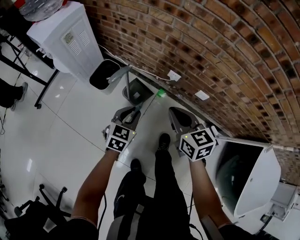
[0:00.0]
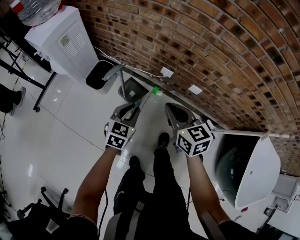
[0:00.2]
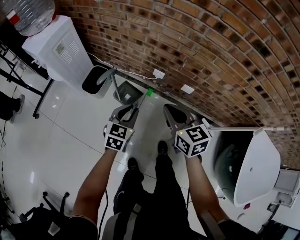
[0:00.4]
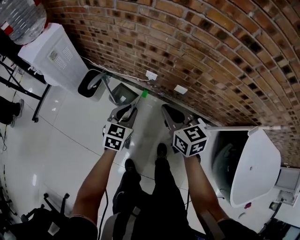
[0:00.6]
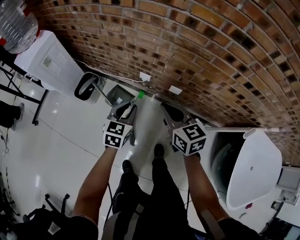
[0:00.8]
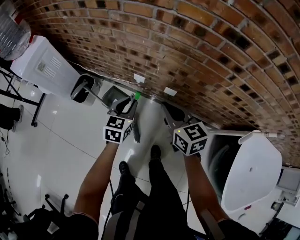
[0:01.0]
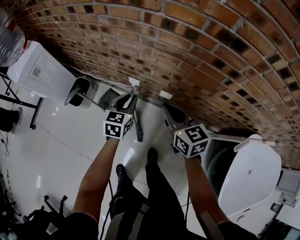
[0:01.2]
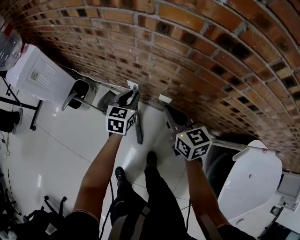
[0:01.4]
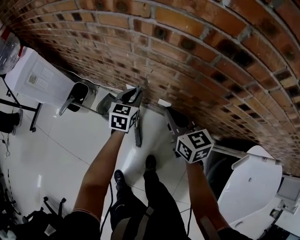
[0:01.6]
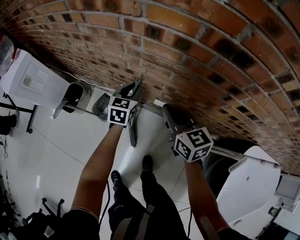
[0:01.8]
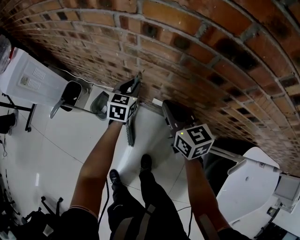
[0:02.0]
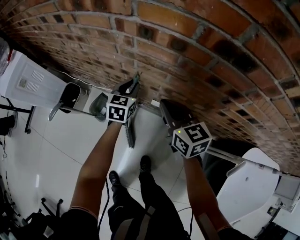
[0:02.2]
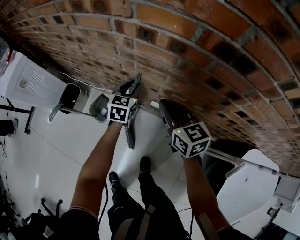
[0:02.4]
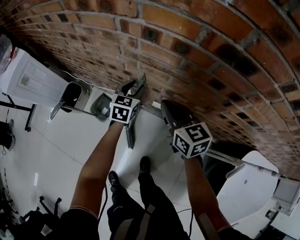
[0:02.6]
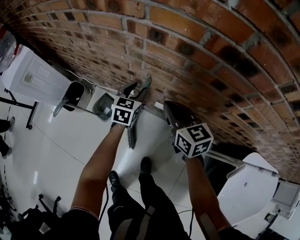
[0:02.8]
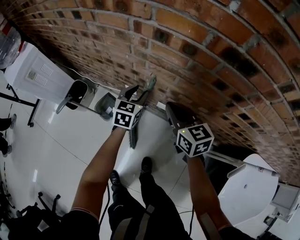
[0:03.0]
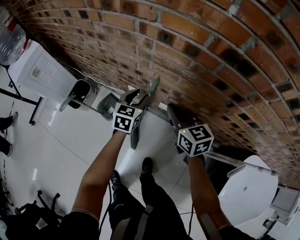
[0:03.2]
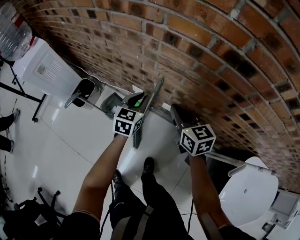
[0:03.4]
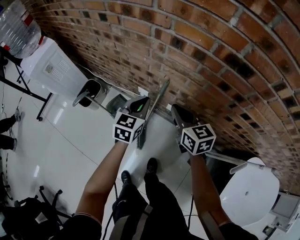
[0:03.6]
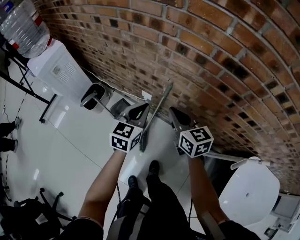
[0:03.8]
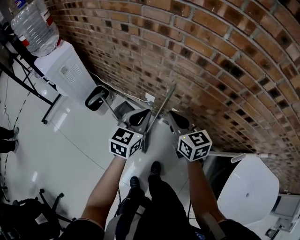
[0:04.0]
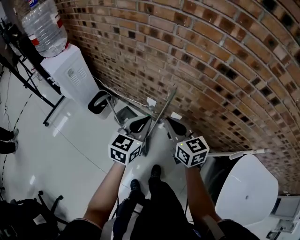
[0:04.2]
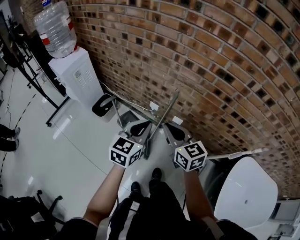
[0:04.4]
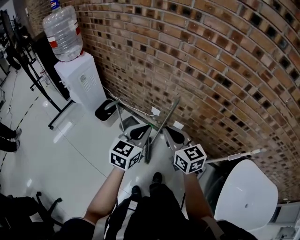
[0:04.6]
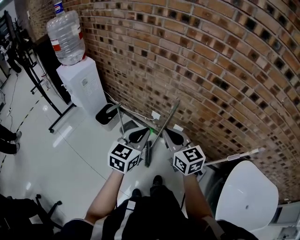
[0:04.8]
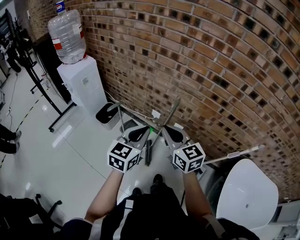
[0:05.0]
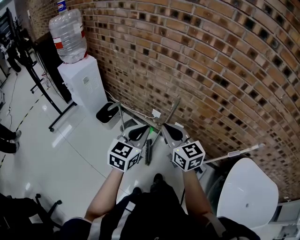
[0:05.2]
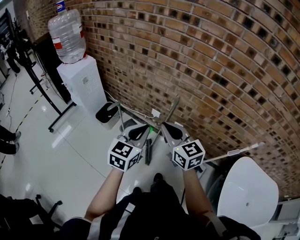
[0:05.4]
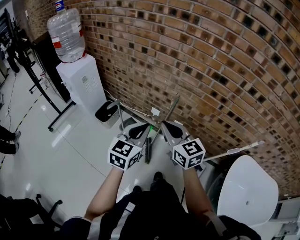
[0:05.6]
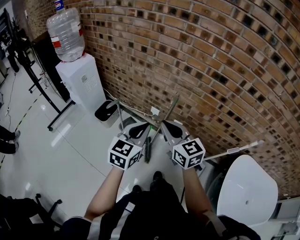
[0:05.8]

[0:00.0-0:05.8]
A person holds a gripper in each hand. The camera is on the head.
0:00.0 to 0:01.4: The right gripper shifts roughly 25 cm to the right, while the left gripper goes roughly 30 cm to the right and forward.
0:01.4 to 0:02.8: The right gripper moves forward, roughly 5 cm. The left gripper moves forward and to the right, roughly 10 cm.
0:02.8 to 0:04.4: The grippers both shift backward, upward and to the left by about 35 cm. The left gripper closes its fingers.
0:04.4 to 0:05.8: The right gripper goes some 5 cm upward; the left gripper is displaced backward by approximately 5 cm.

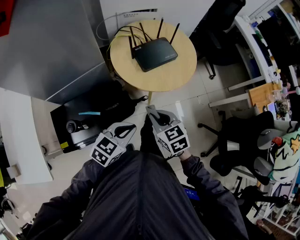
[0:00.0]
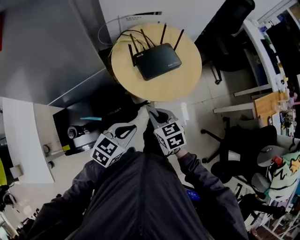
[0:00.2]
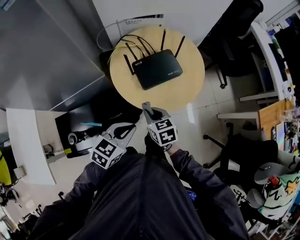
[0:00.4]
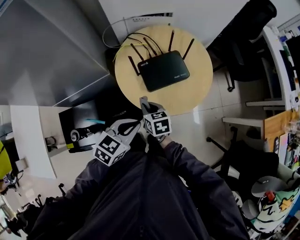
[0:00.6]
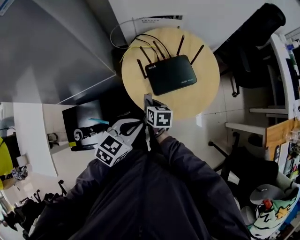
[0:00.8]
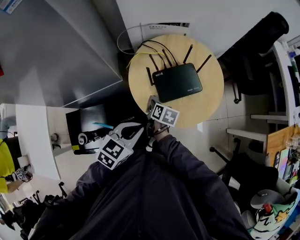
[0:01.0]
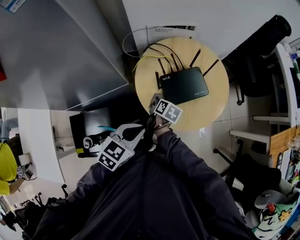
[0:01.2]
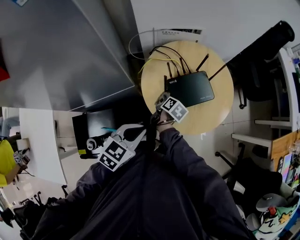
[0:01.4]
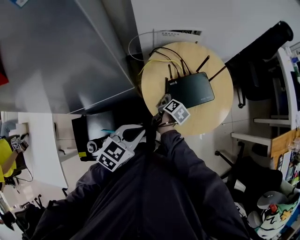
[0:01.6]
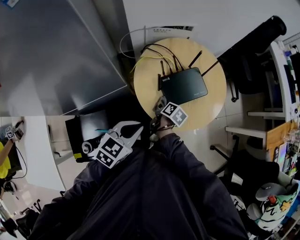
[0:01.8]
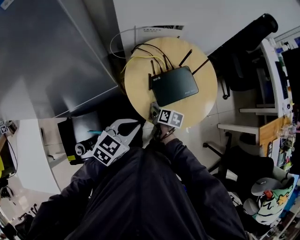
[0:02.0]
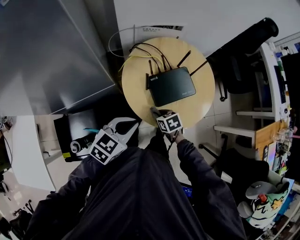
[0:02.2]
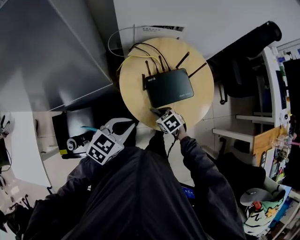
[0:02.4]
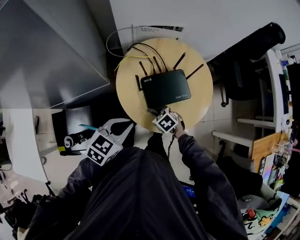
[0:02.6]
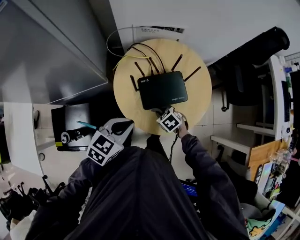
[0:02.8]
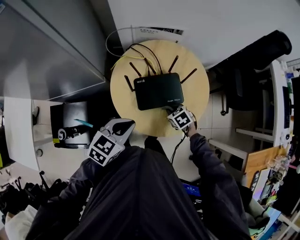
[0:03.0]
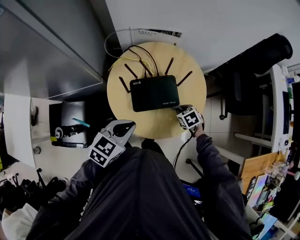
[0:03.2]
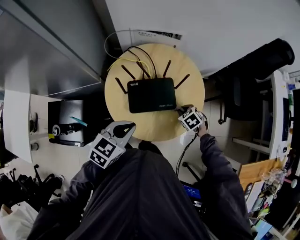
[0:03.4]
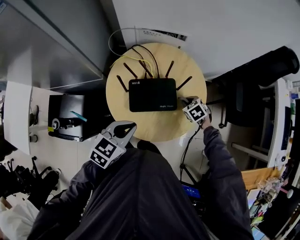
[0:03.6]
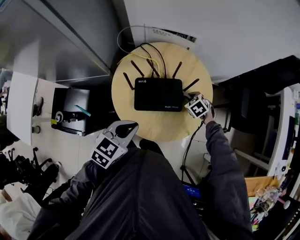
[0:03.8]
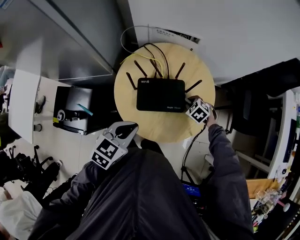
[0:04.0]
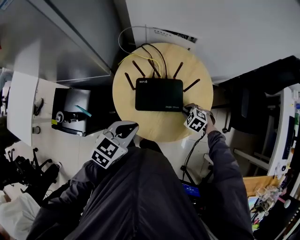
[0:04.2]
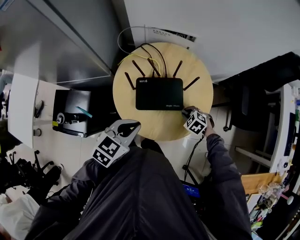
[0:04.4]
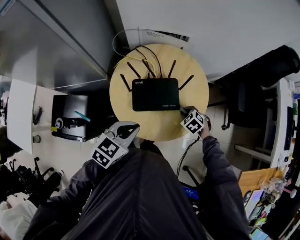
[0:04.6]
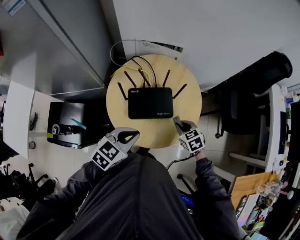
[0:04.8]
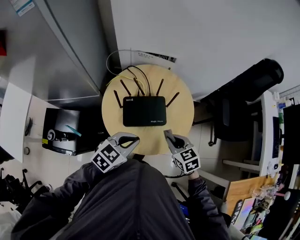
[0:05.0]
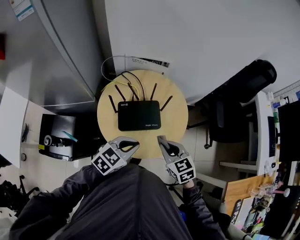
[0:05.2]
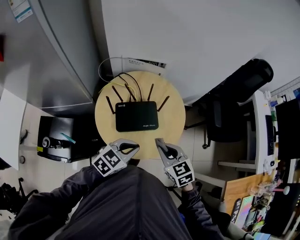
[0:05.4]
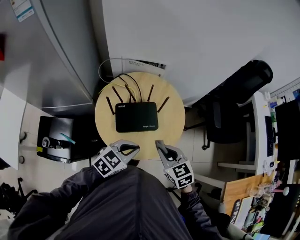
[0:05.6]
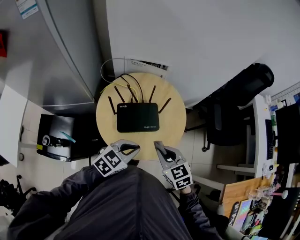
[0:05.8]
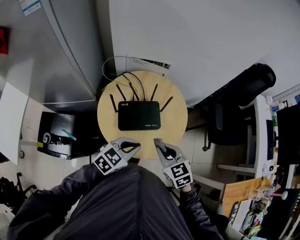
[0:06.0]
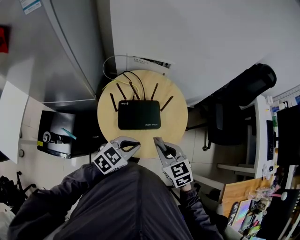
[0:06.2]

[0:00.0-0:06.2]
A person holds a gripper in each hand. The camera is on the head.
0:00.0 to 0:01.6: The left gripper heads forward and to the left, covering about 20 cm, while the right gripper goes about 35 cm forward and downward, and rotates around the line of its fingers by about 70 degrees, clockwise from behind.
0:01.6 to 0:03.2: The right gripper moves roughly 25 cm, and rolls counterclockwise, seen from behind, by roughly 90 degrees. Meanwhile the left gripper shifts by some 15 cm.
0:03.2 to 0:04.6: The right gripper moves about 10 cm forward and comes back, and rotates some 30 degrees.
0:04.6 to 0:06.2: The left gripper travels to the right by roughly 5 cm; the right gripper moves upward and backward, roughly 25 cm, and tips its fingers upward by approximately 30 degrees.

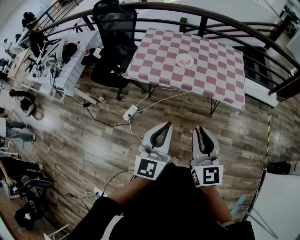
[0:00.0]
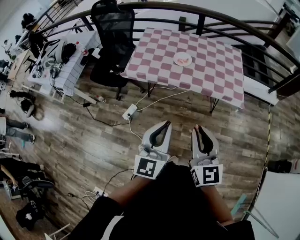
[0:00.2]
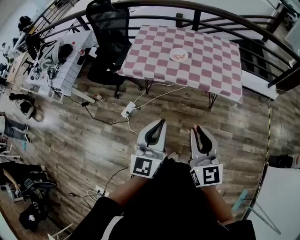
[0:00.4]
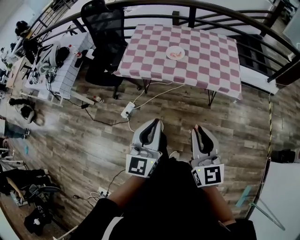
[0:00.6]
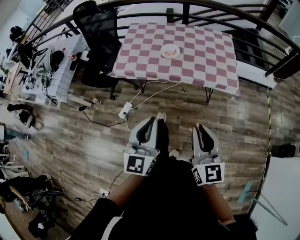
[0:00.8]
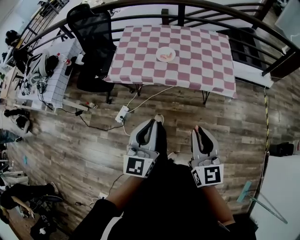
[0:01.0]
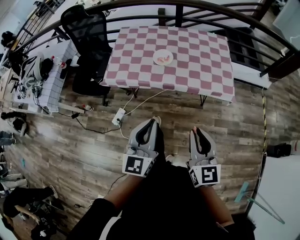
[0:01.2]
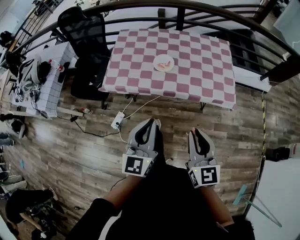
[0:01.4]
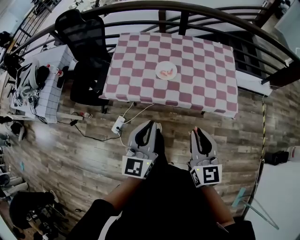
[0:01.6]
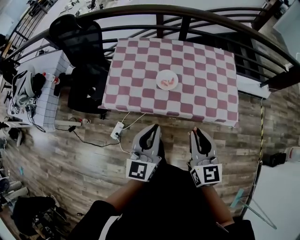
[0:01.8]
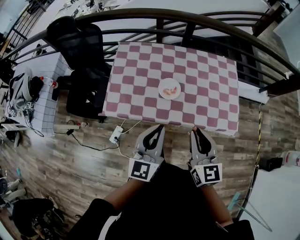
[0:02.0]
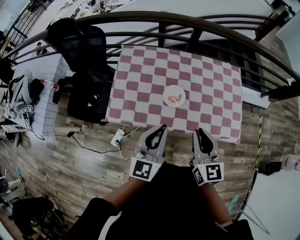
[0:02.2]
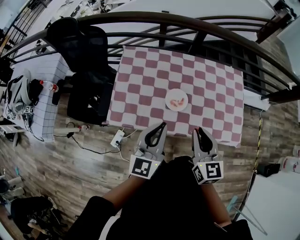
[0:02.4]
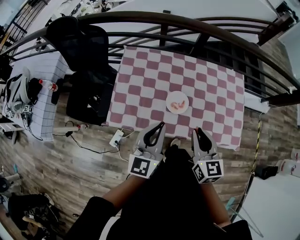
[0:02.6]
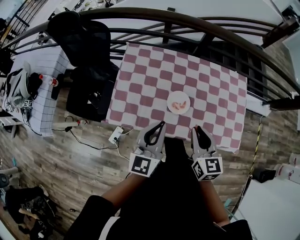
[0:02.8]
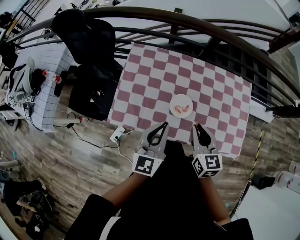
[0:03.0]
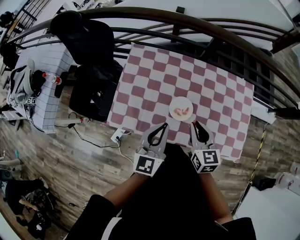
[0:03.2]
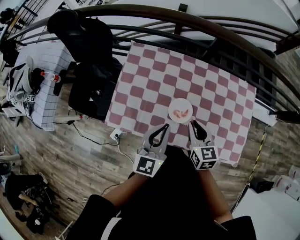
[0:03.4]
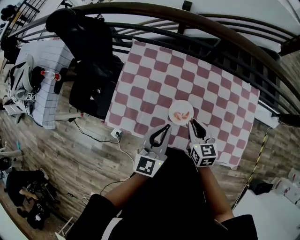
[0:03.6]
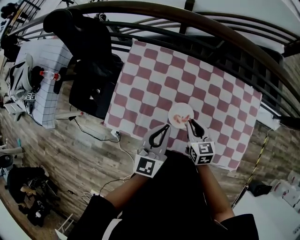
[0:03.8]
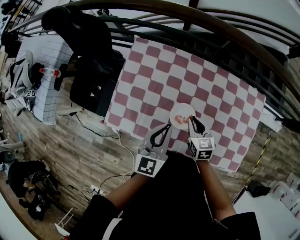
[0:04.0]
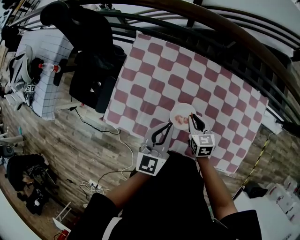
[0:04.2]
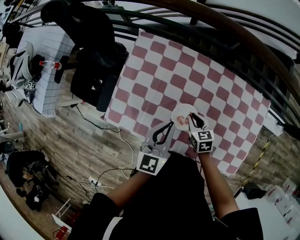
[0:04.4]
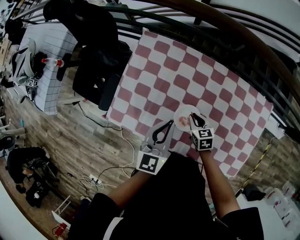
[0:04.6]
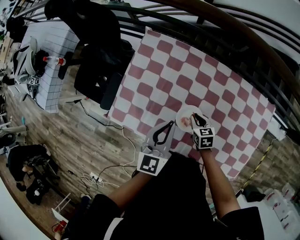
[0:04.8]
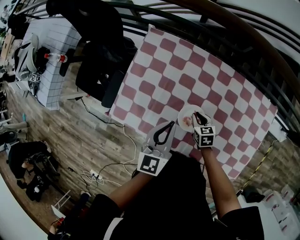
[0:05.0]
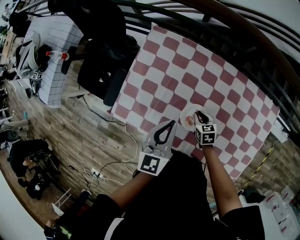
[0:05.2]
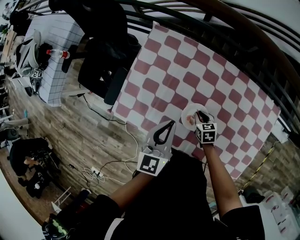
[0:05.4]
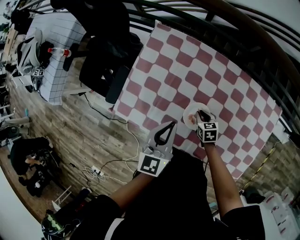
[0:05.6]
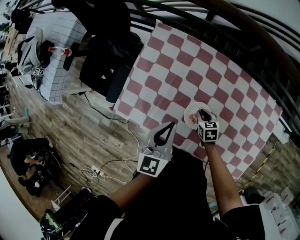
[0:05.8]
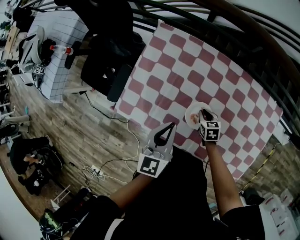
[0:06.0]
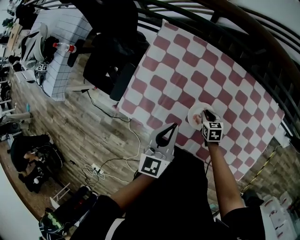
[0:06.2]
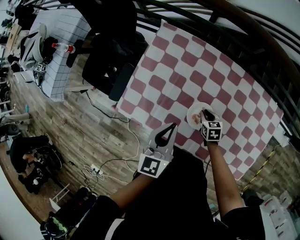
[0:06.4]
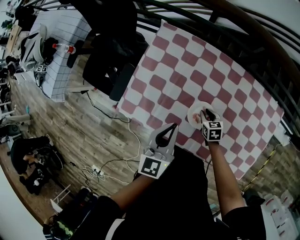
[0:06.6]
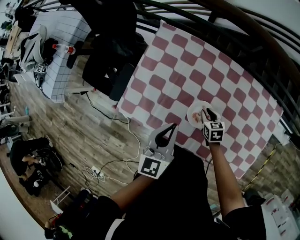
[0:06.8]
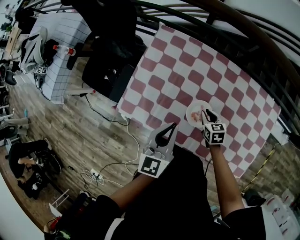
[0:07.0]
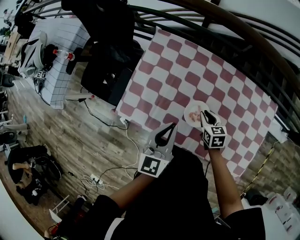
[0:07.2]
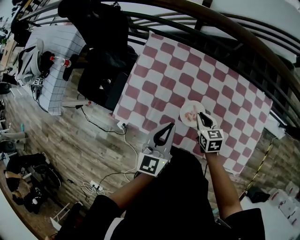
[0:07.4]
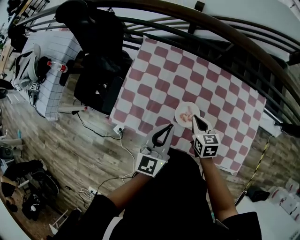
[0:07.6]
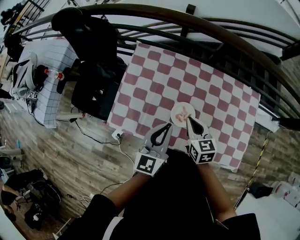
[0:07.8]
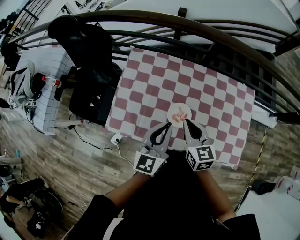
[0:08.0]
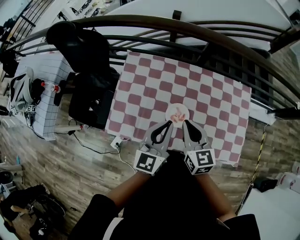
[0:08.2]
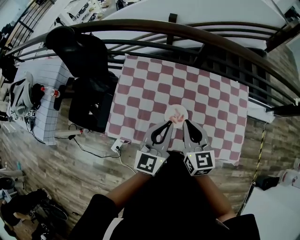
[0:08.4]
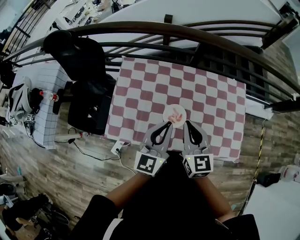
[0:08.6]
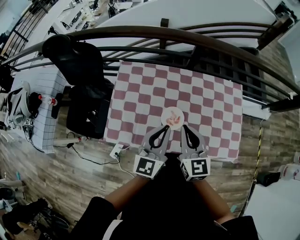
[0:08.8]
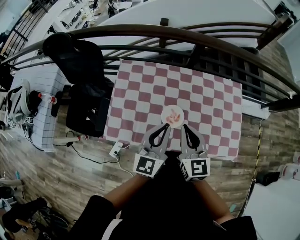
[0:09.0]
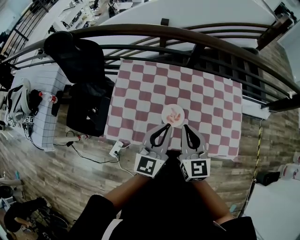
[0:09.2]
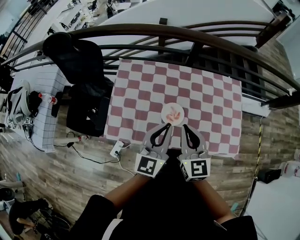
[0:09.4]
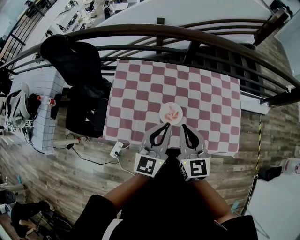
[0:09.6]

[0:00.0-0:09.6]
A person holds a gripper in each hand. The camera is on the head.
0:00.0 to 0:01.6: The grippers both shift forward by approximately 20 cm.
0:01.6 to 0:03.2: Both grippers travel together forward, about 30 cm.
0:03.2 to 0:04.8: The left gripper shifts some 15 cm forward and downward. The right gripper moves downward and forward, some 25 cm, and turns by about 30 degrees.
0:04.8 to 0:06.4: The left gripper moves some 5 cm.
0:06.4 to 0:08.0: The left gripper goes approximately 10 cm upward. The right gripper moves upward, some 30 cm, and tilts its fingers roughly 30 degrees upward.
0:08.0 to 0:09.6: The right gripper is displaced upward and backward by some 10 cm; the left gripper changes place by roughly 5 cm.

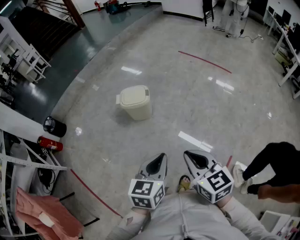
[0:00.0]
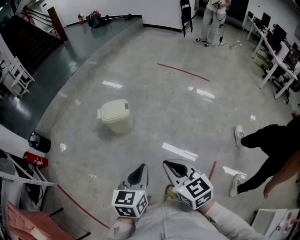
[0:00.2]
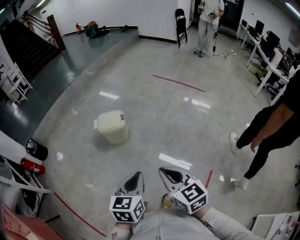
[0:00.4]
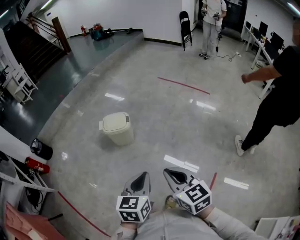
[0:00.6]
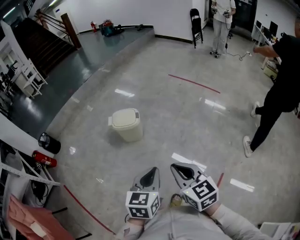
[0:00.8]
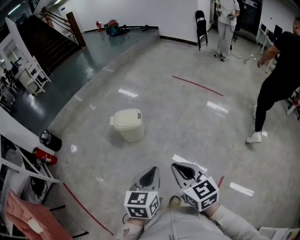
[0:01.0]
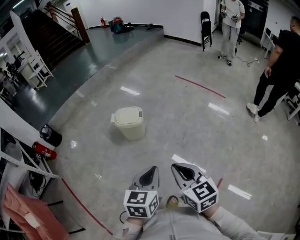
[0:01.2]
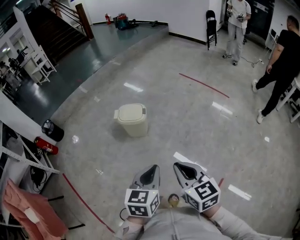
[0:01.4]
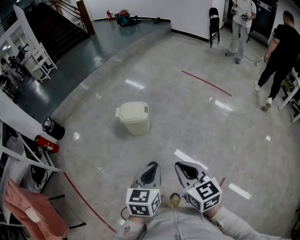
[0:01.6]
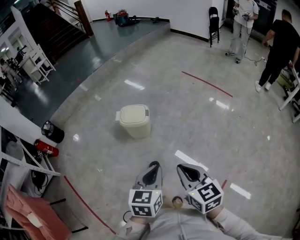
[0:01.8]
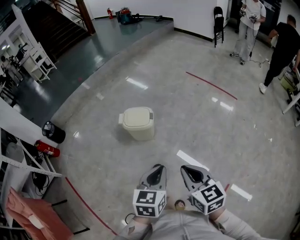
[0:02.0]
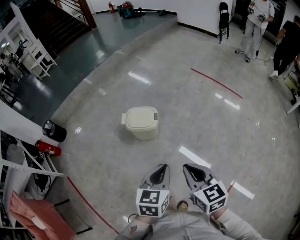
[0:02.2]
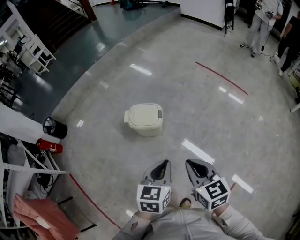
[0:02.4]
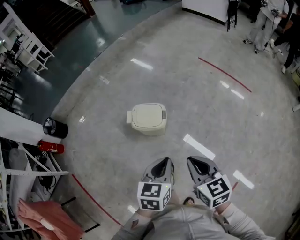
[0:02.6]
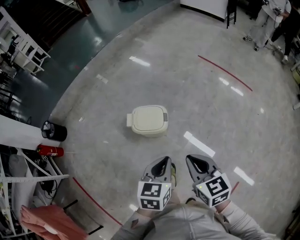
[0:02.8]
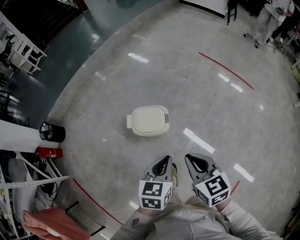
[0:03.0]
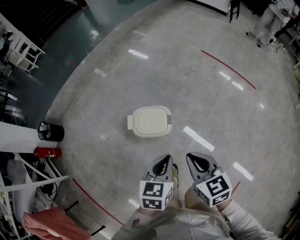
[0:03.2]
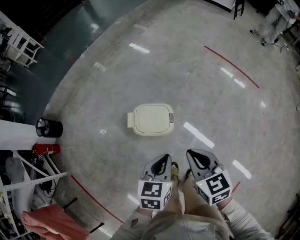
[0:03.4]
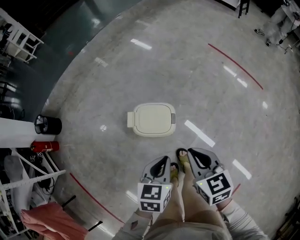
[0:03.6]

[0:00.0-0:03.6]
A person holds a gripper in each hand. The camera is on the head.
0:00.0 to 0:01.8: There are only small adjustments of the grippers.
0:01.8 to 0:03.6: The grippers both shift forward by some 40 cm.
